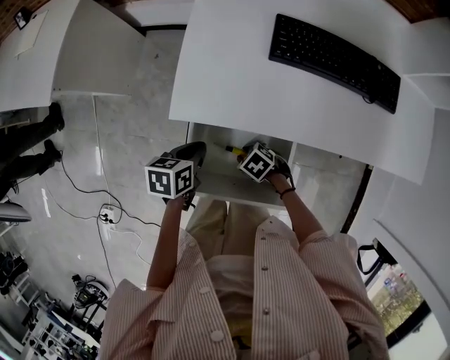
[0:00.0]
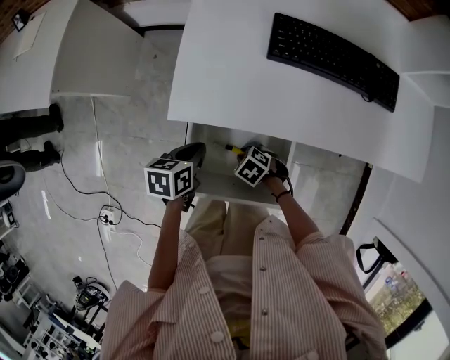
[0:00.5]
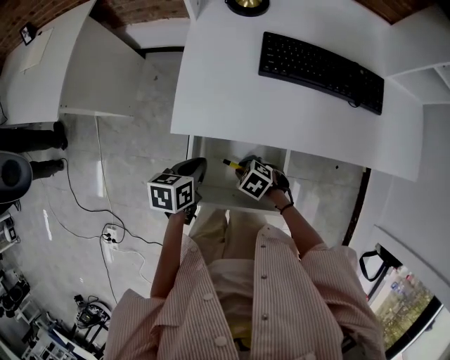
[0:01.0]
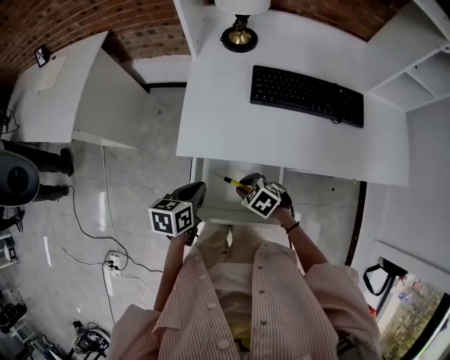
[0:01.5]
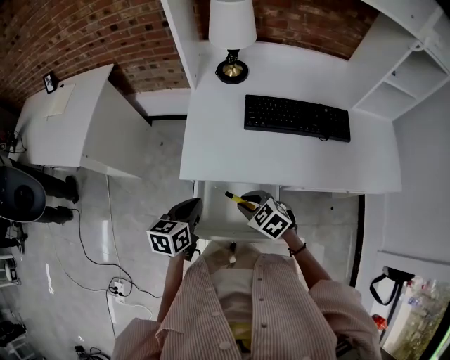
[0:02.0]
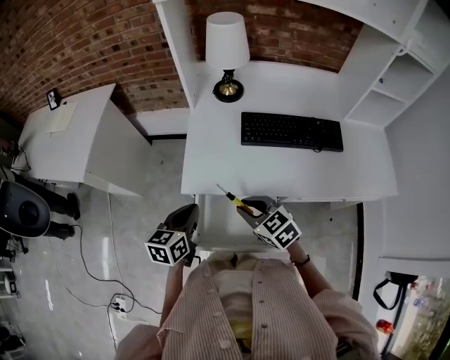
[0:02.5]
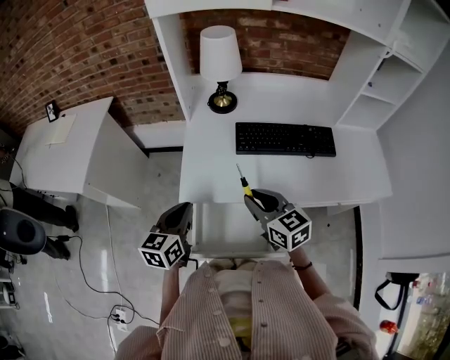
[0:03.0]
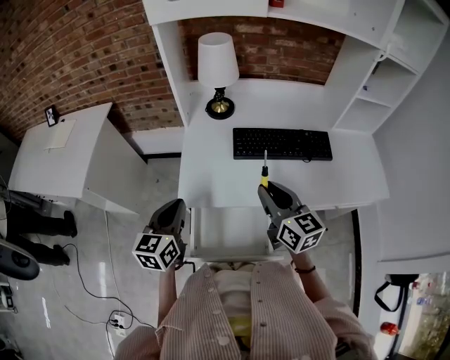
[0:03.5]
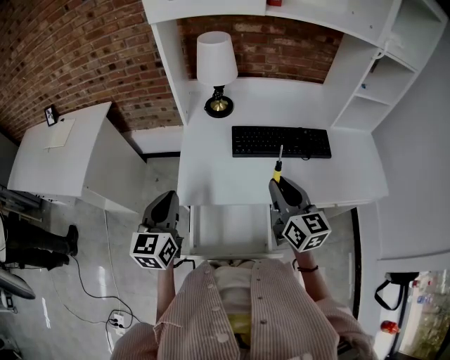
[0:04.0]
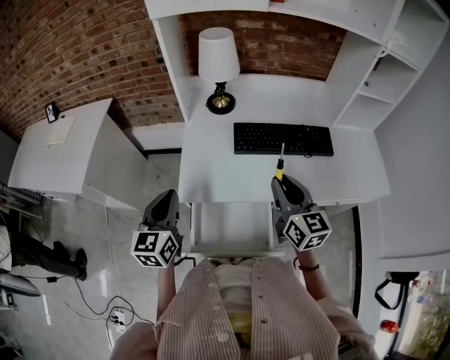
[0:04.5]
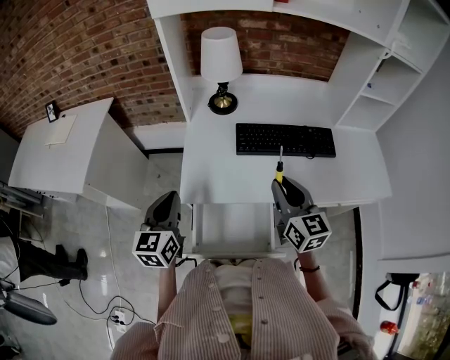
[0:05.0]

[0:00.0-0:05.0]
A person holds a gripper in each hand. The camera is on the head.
0:00.0 to 0:02.5: The right gripper is displaced upward by about 25 cm, and changes its angle by some 40 degrees. The left gripper is displaced upward by approximately 15 cm, and turns by some 30 degrees.
0:02.5 to 0:05.0: The right gripper shifts some 15 cm to the right and upward, and turns by approximately 40 degrees. The left gripper heads upward, covering about 10 cm, and turns by about 20 degrees.

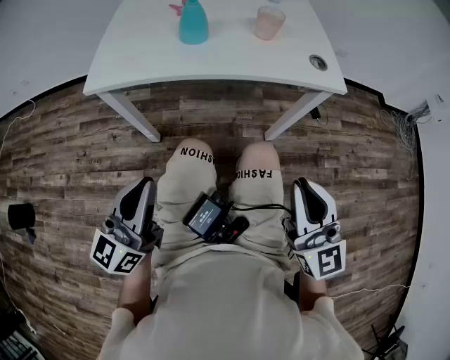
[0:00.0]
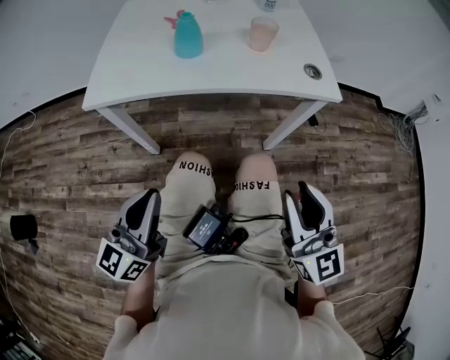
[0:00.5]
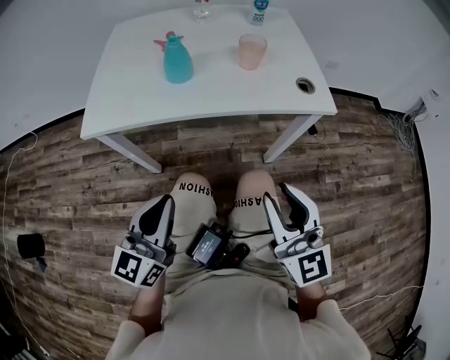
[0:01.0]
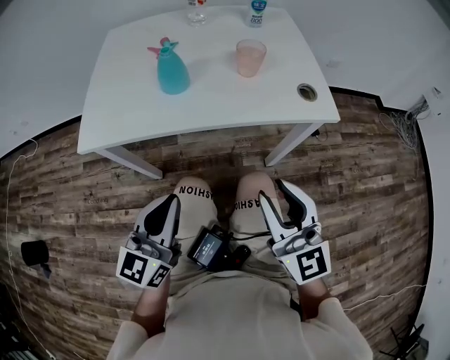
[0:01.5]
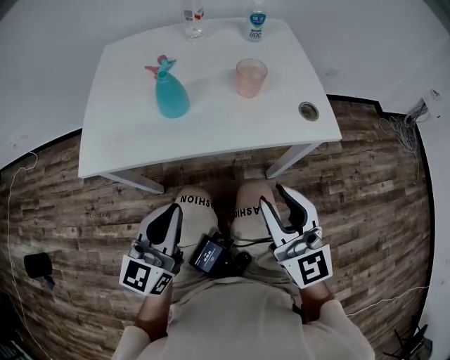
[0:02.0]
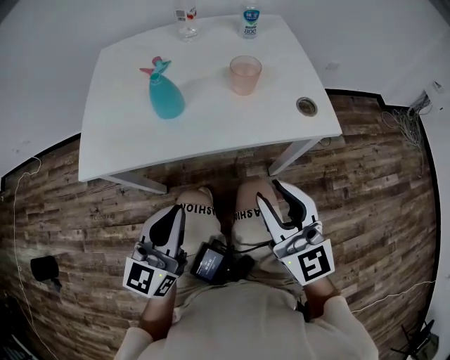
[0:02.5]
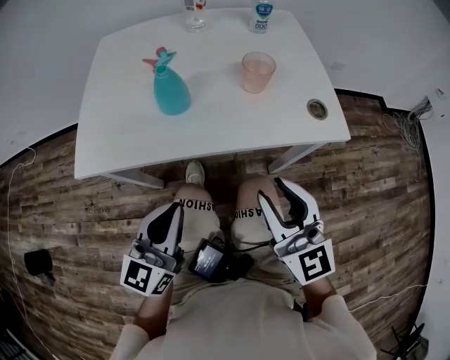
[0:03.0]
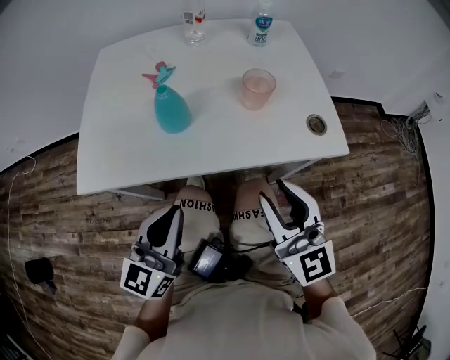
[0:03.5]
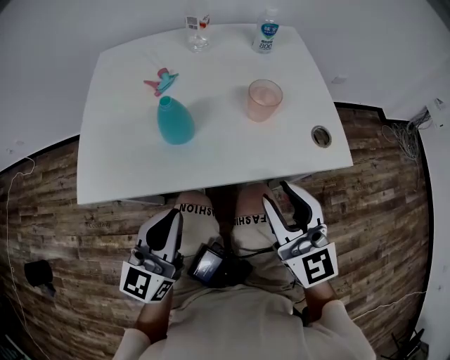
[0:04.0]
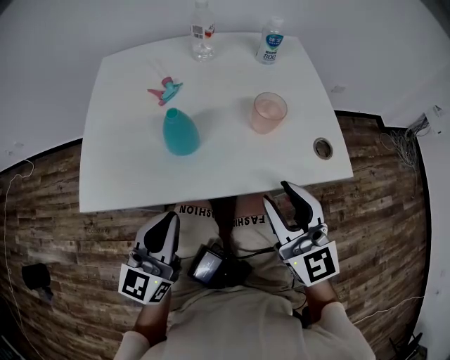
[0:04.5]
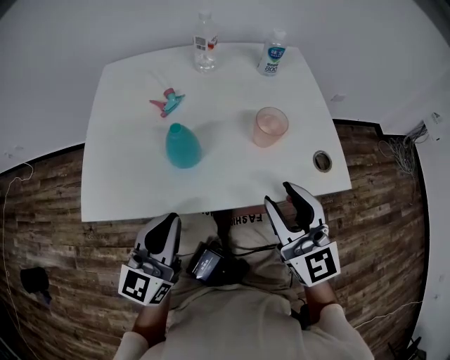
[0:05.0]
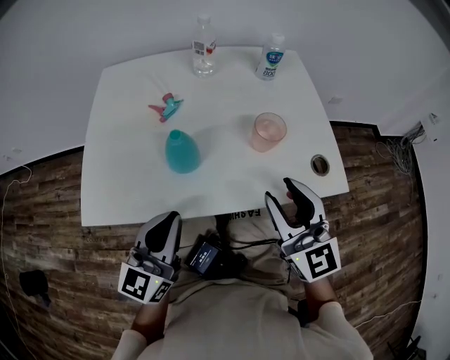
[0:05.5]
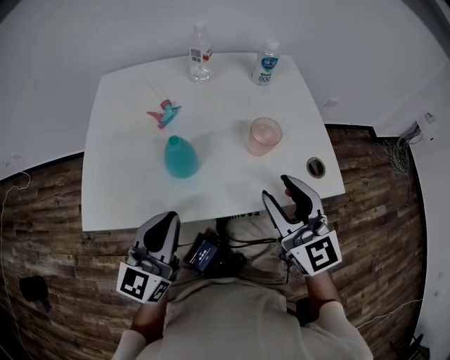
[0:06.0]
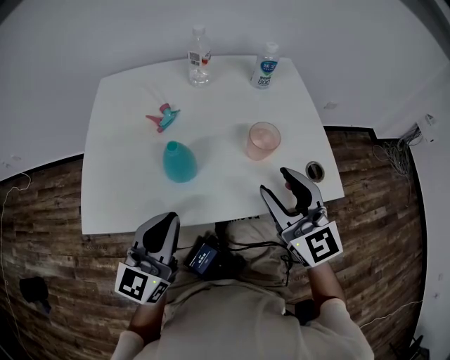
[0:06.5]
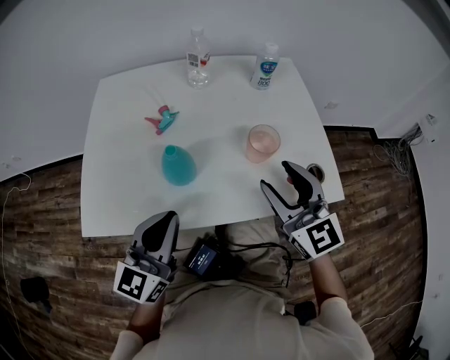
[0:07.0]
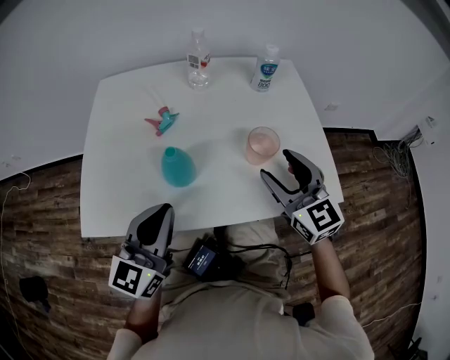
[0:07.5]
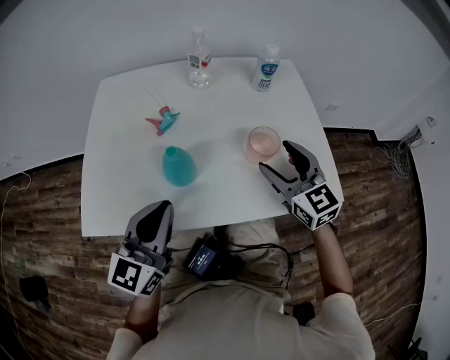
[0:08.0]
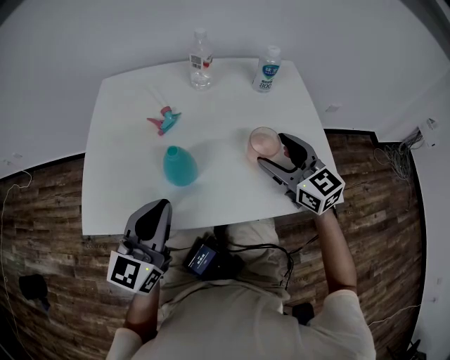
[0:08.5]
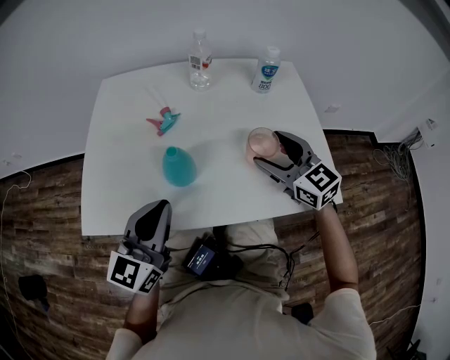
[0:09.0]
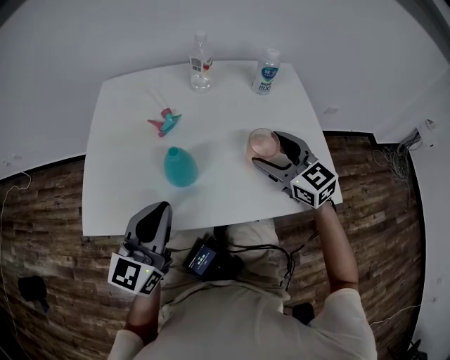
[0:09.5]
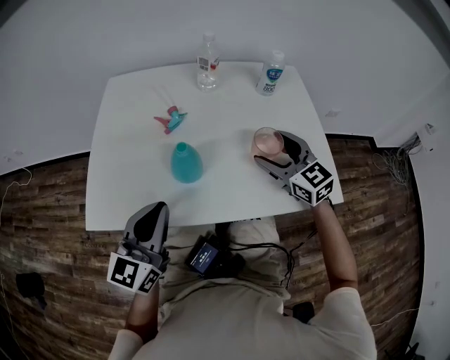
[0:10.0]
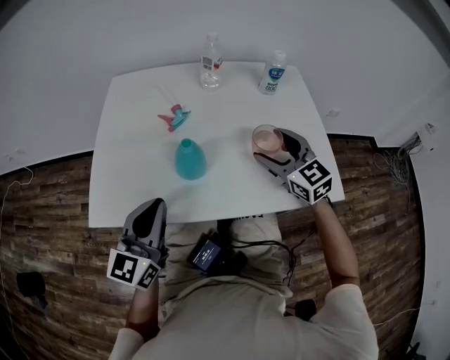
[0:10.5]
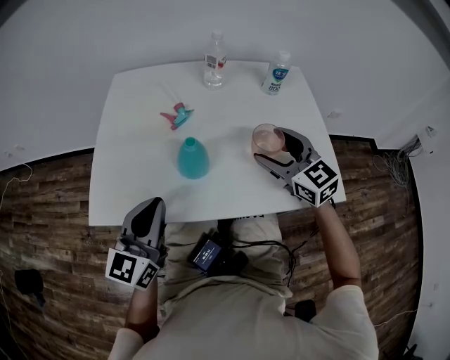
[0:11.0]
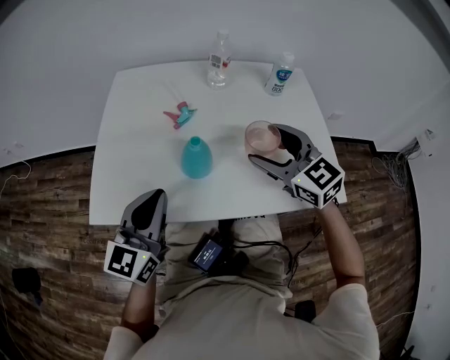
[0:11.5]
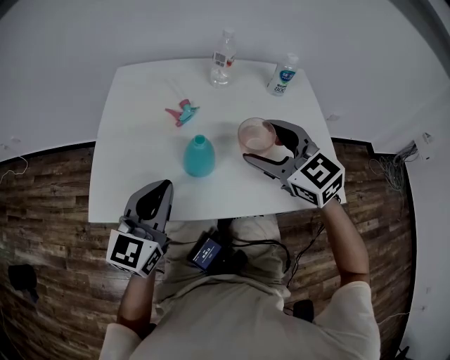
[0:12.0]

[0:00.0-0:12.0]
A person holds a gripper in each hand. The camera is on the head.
0:00.0 to 0:02.0: The right gripper is displaced forward by roughly 15 cm. The left gripper heads forward and to the right, covering approximately 15 cm.
0:02.0 to 0:04.0: Both grippers move forward, roughly 10 cm.
0:04.0 to 0:06.0: Both grippers travel together forward, about 5 cm.
0:06.0 to 0:08.0: The right gripper is displaced forward by approximately 10 cm, and opens its fingers.
0:08.0 to 0:10.0: The grippers make only small movements.
0:10.0 to 0:12.0: The right gripper heads to the left and upward, covering some 10 cm.

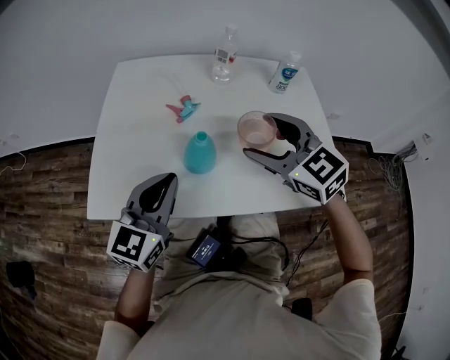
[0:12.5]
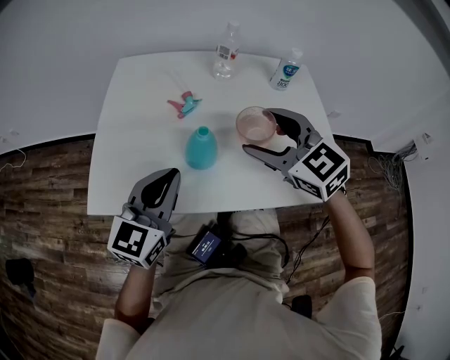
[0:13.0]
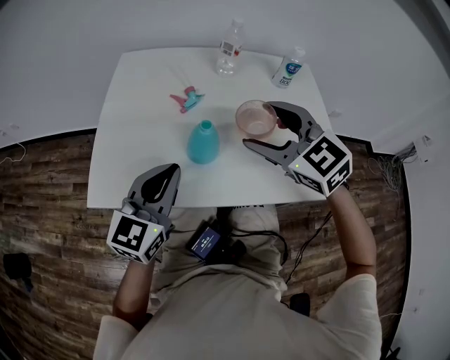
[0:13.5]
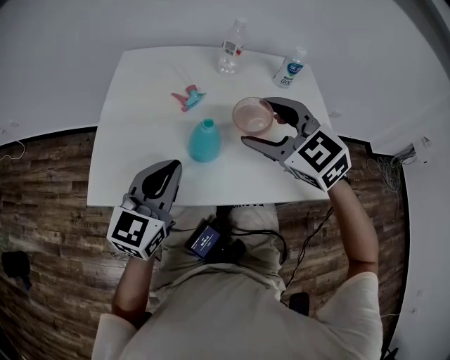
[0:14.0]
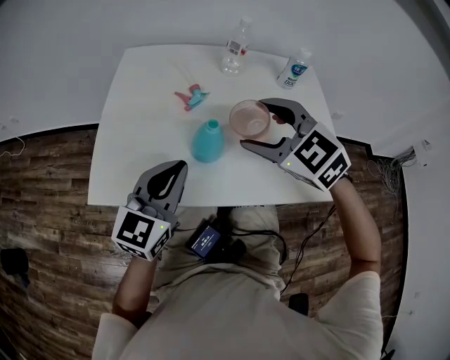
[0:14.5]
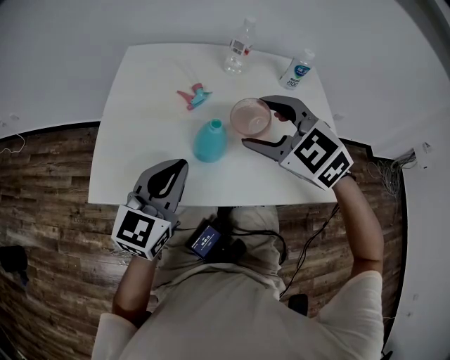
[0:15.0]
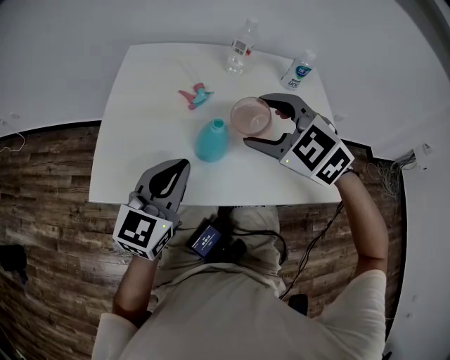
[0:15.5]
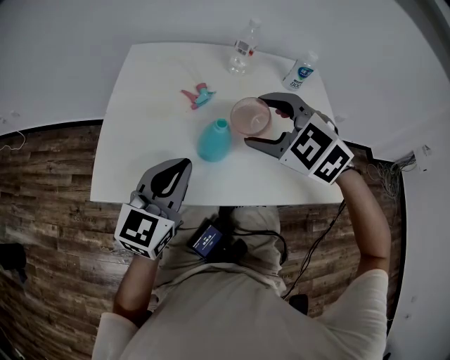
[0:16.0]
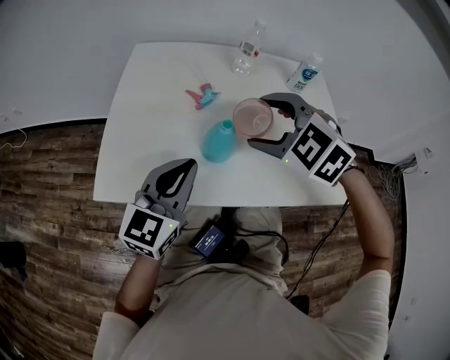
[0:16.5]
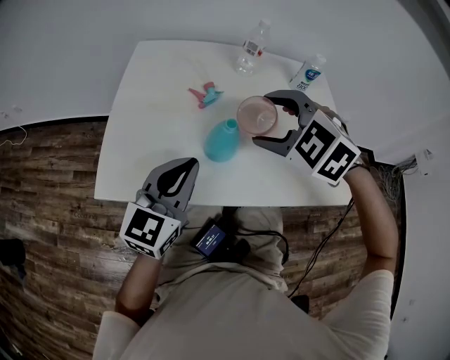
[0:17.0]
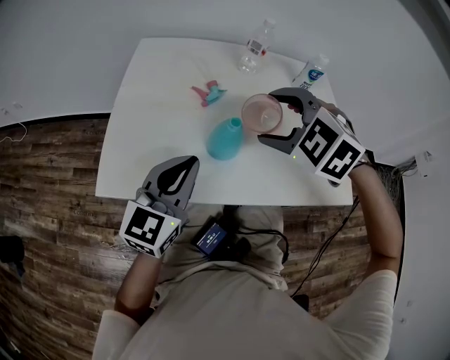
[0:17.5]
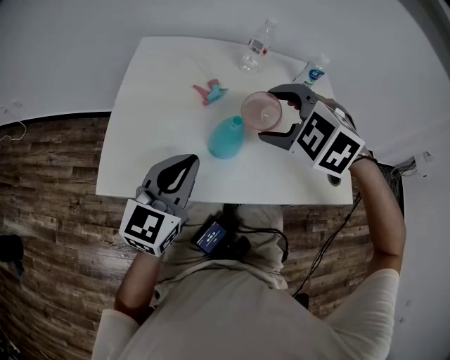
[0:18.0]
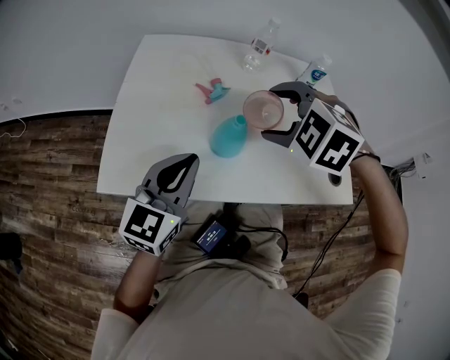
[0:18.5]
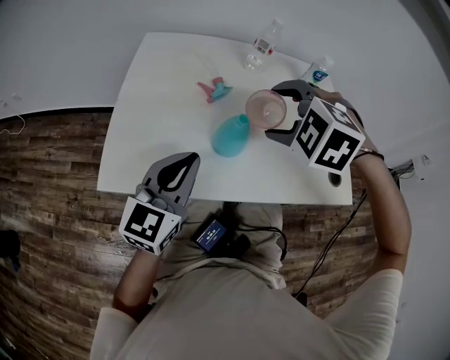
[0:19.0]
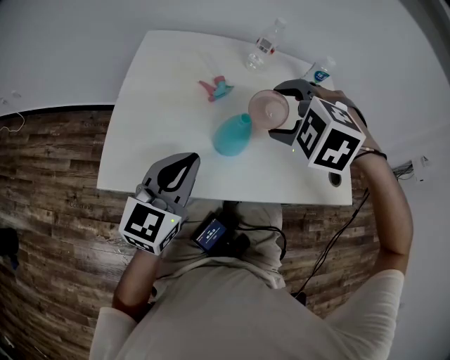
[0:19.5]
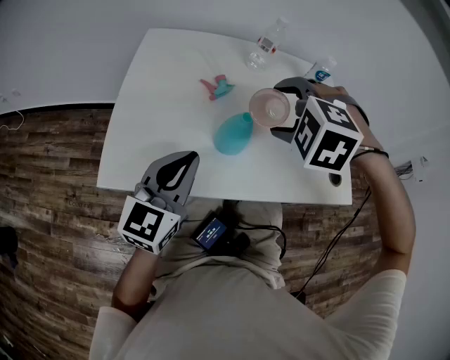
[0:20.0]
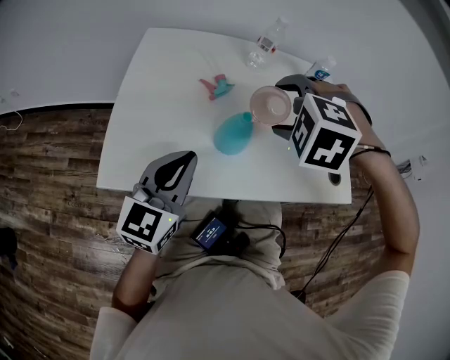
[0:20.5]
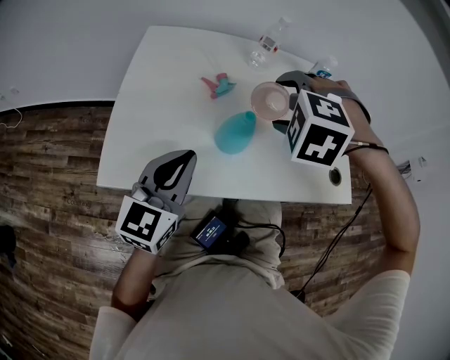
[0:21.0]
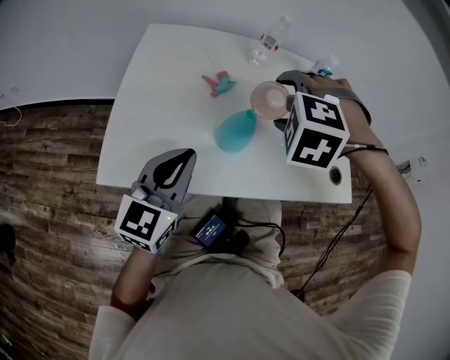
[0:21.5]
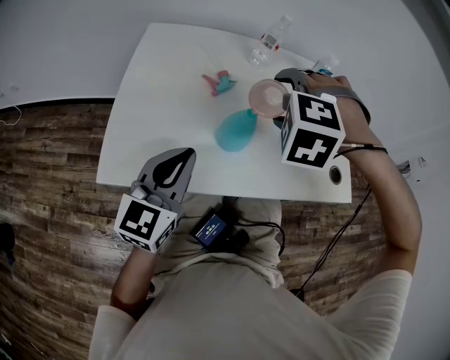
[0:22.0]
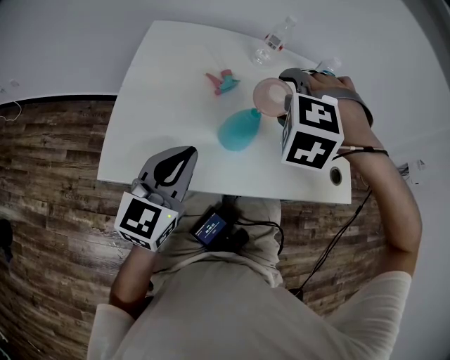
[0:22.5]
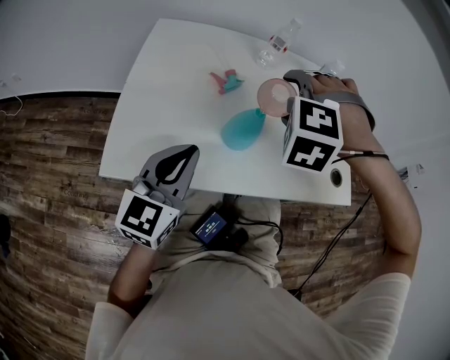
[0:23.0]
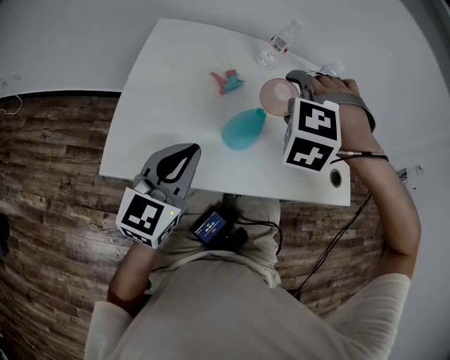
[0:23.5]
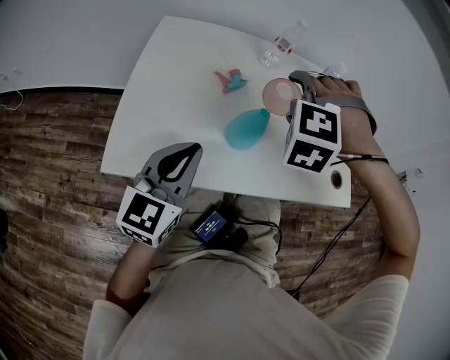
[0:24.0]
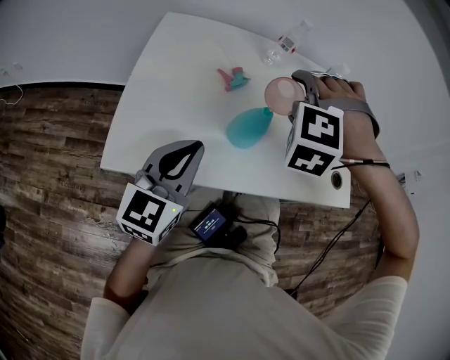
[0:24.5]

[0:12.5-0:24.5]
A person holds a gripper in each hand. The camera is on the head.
0:12.5 to 0:14.5: The grippers make only small movements.
0:14.5 to 0:16.5: The grippers make only small movements.
0:16.5 to 0:18.5: The grippers move only a little.
0:18.5 to 0:20.5: The grippers make only small movements.
0:20.5 to 0:22.5: There are only small adjustments of the grippers.
0:22.5 to 0:24.5: The grippers move only a little.
